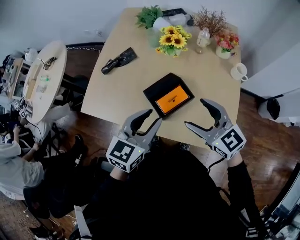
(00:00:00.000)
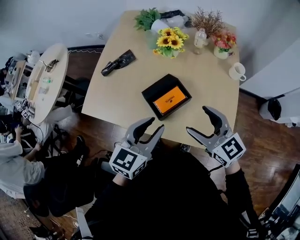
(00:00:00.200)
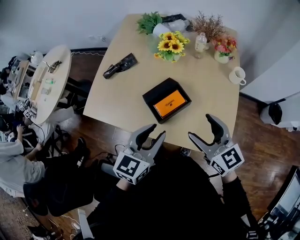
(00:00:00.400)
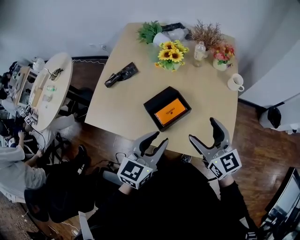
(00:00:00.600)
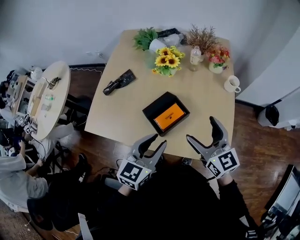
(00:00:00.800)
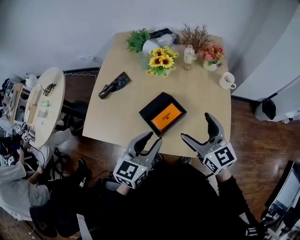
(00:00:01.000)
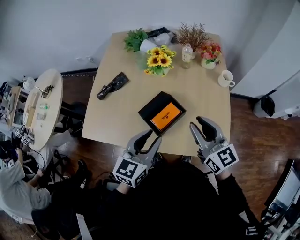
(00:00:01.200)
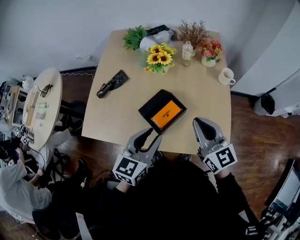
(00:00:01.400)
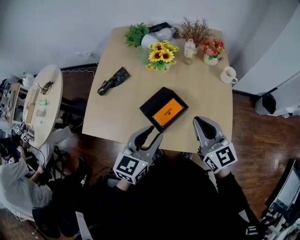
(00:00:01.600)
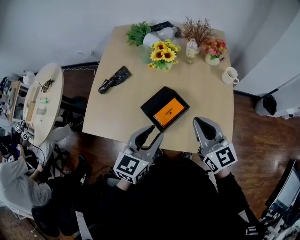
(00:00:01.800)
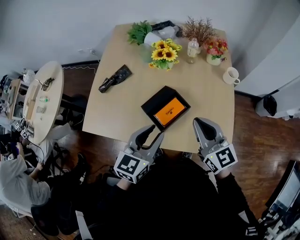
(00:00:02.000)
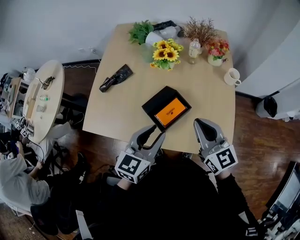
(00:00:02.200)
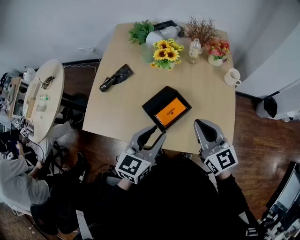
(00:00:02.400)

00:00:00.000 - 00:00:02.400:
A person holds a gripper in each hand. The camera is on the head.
00:00:00.000 - 00:00:01.200: The right gripper moves roughly 5 cm, swivels about 30 degrees, and closes its fingers.
00:00:01.200 - 00:00:02.400: There are only small adjustments of the grippers.

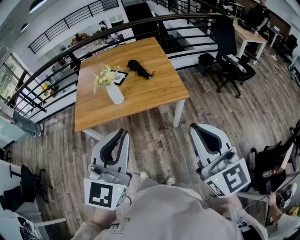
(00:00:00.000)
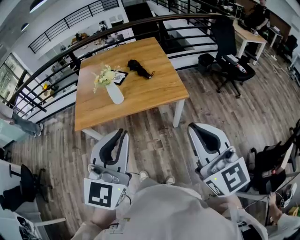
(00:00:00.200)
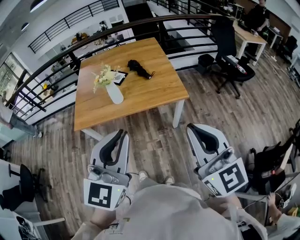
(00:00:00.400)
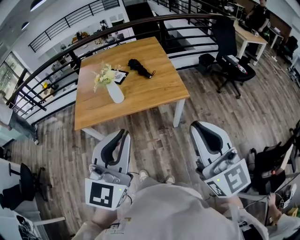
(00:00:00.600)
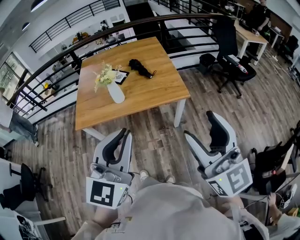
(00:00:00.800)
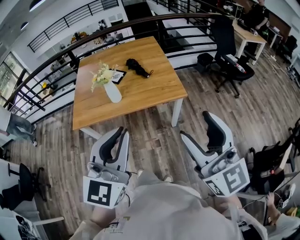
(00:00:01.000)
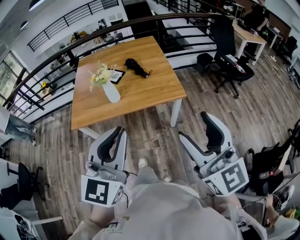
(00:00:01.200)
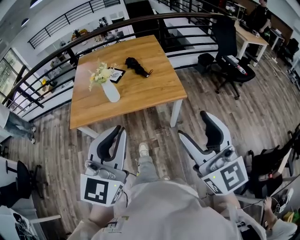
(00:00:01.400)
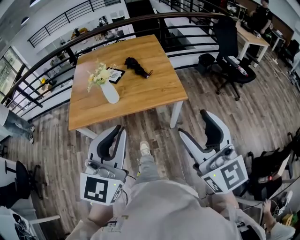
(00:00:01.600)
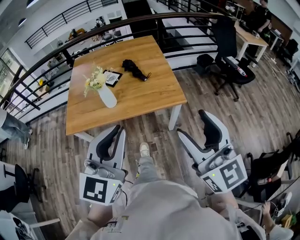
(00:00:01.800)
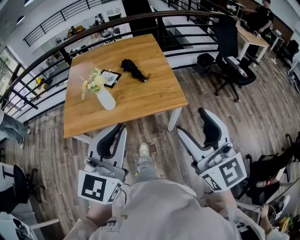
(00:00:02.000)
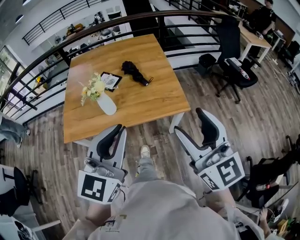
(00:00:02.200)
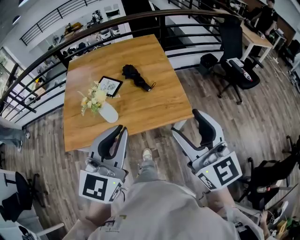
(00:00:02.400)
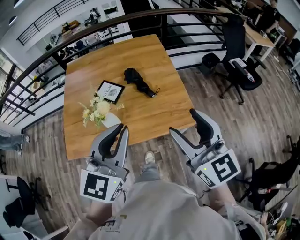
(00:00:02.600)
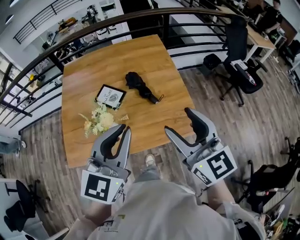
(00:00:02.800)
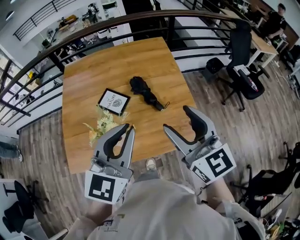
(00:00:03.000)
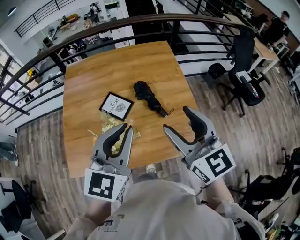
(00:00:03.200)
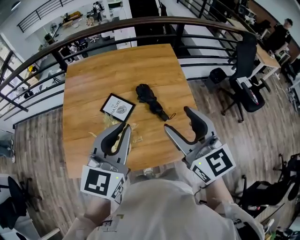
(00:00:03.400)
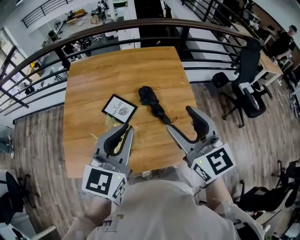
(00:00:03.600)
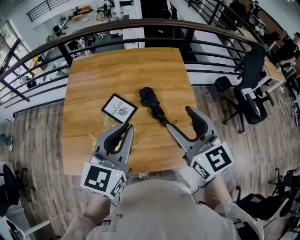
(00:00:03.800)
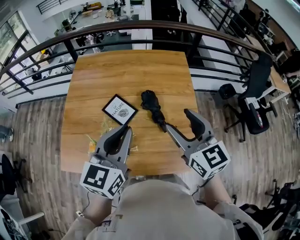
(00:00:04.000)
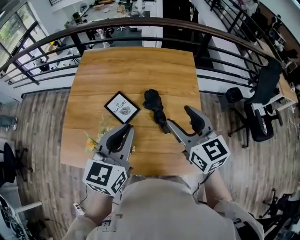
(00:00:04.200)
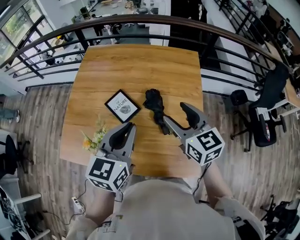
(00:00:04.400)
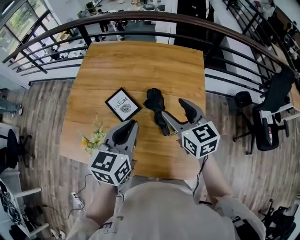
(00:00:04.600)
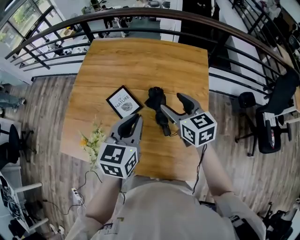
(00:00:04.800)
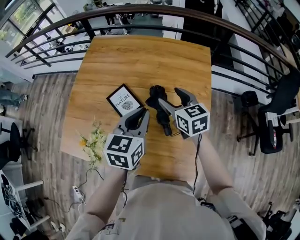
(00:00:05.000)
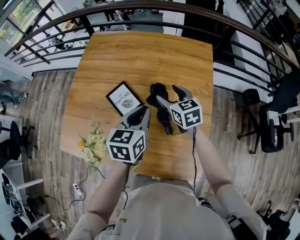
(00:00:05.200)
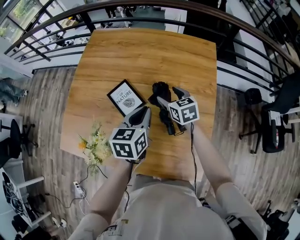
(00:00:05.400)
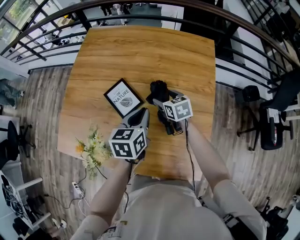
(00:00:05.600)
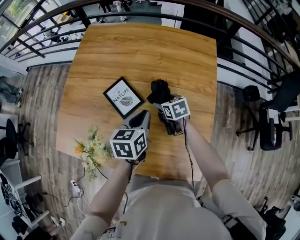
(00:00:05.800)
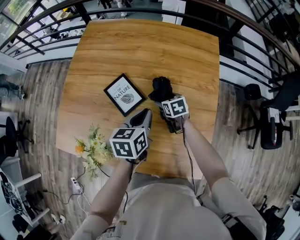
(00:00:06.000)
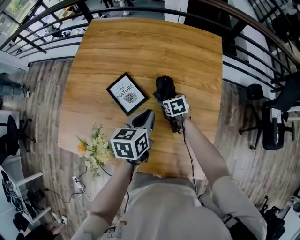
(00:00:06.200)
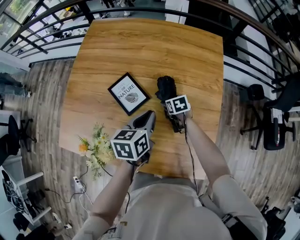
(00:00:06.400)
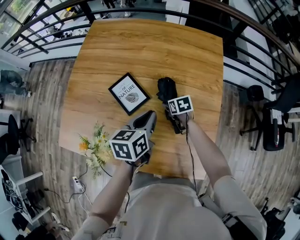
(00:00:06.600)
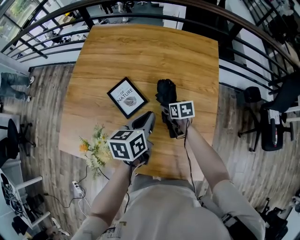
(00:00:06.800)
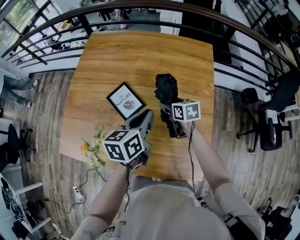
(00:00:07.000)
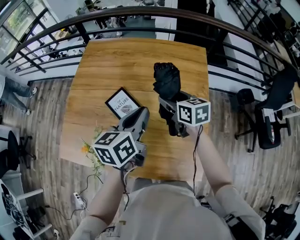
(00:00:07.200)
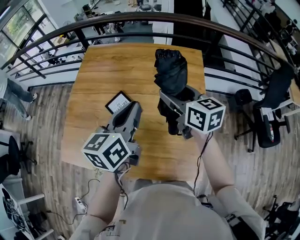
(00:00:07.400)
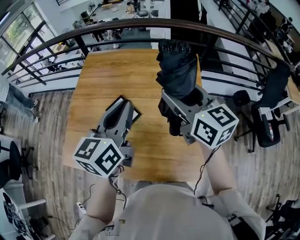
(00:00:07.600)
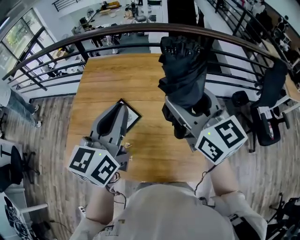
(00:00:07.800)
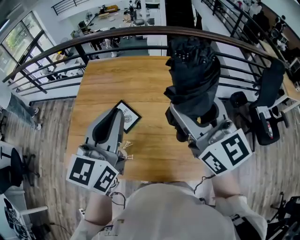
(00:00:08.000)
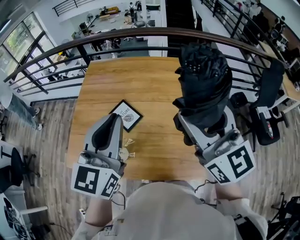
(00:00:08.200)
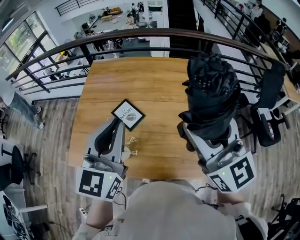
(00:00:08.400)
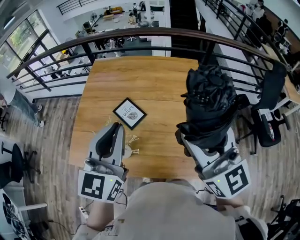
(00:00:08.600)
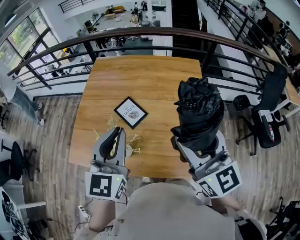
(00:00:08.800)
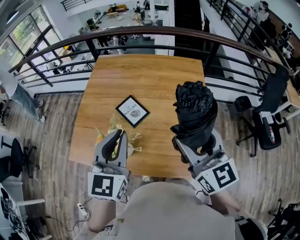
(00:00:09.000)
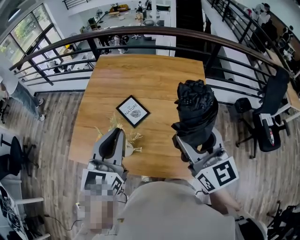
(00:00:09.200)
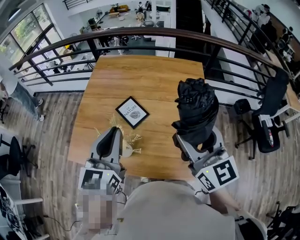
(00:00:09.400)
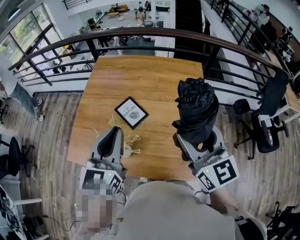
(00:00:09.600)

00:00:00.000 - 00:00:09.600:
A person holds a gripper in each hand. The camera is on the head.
00:00:00.000 - 00:00:01.600: The right gripper goes some 5 cm forward, and opens. Meanwhile the left gripper ends up some 5 cm from where it was.
00:00:01.600 - 00:00:03.200: The pair of grippers is taken forward, some 50 cm.
00:00:03.200 - 00:00:04.800: The right gripper travels forward and downward by approximately 30 cm, and swivels roughly 30 degrees, while the left gripper heads forward, downward and to the right, covering about 20 cm, and swivels about 30 degrees.
00:00:04.800 - 00:00:06.400: The left gripper travels downward by approximately 15 cm, and swivels roughly 30 degrees. Meanwhile the right gripper is displaced downward by about 35 cm, and tips its fingers downward by roughly 40 degrees.
00:00:06.400 - 00:00:08.000: The left gripper goes about 30 cm upward, and points its fingers approximately 30 degrees further upward. The right gripper heads upward, covering approximately 60 cm, and tilts its fingers approximately 70 degrees upward.
00:00:08.000 - 00:00:09.600: The left gripper travels to the left and downward by some 10 cm. The right gripper shifts about 10 cm downward and backward.

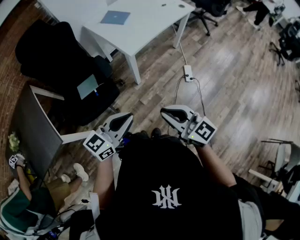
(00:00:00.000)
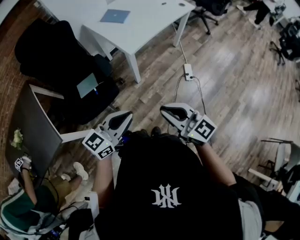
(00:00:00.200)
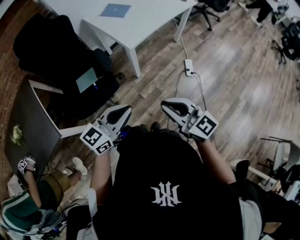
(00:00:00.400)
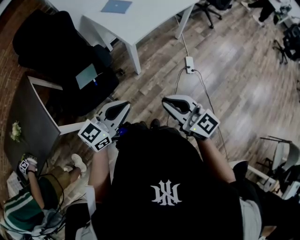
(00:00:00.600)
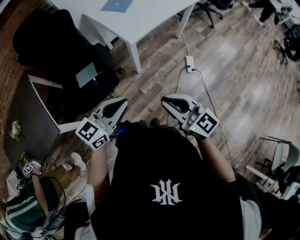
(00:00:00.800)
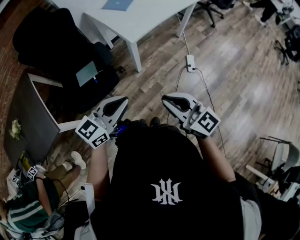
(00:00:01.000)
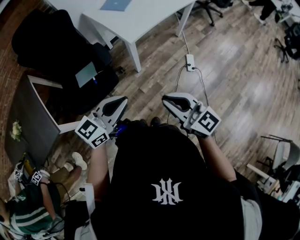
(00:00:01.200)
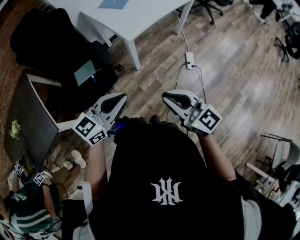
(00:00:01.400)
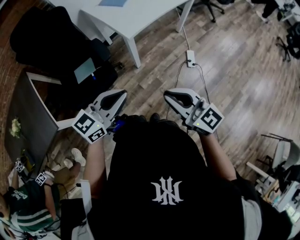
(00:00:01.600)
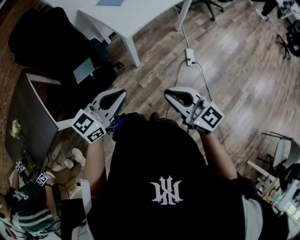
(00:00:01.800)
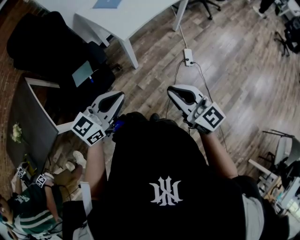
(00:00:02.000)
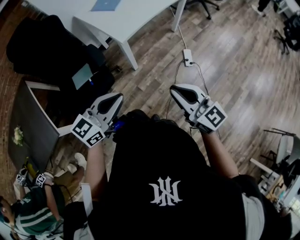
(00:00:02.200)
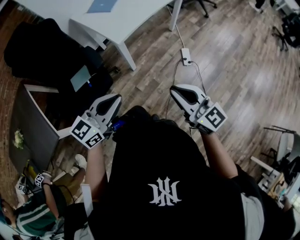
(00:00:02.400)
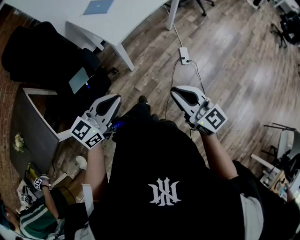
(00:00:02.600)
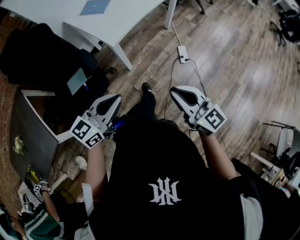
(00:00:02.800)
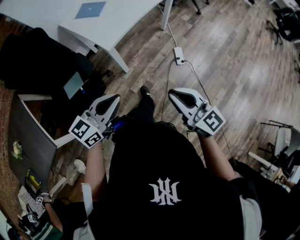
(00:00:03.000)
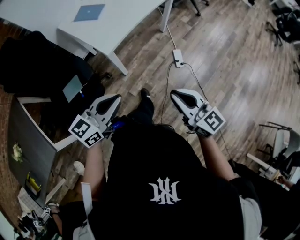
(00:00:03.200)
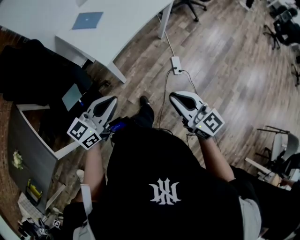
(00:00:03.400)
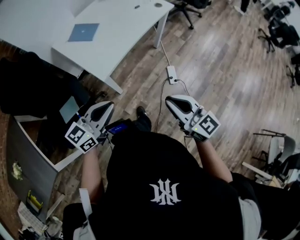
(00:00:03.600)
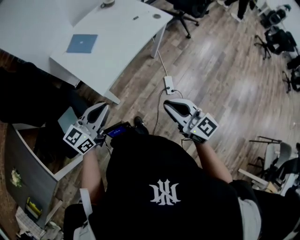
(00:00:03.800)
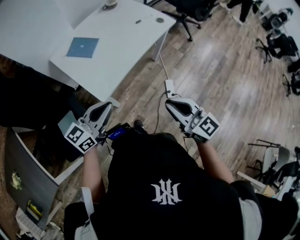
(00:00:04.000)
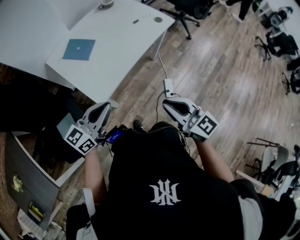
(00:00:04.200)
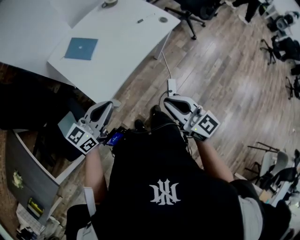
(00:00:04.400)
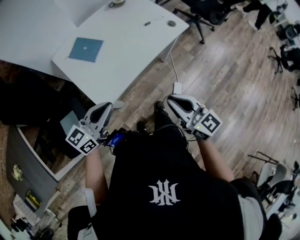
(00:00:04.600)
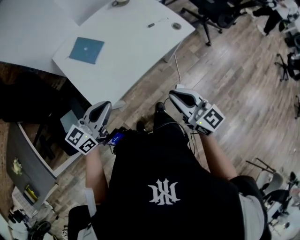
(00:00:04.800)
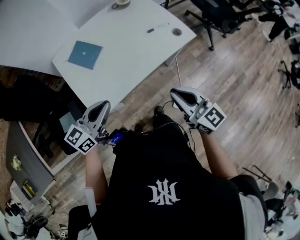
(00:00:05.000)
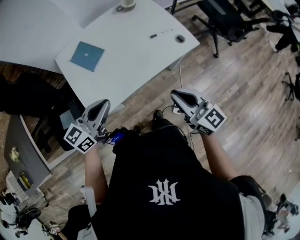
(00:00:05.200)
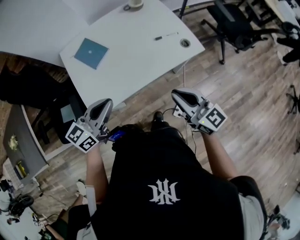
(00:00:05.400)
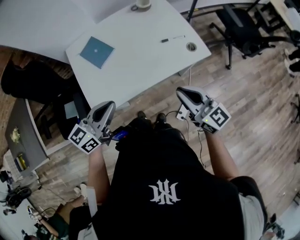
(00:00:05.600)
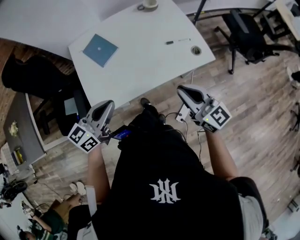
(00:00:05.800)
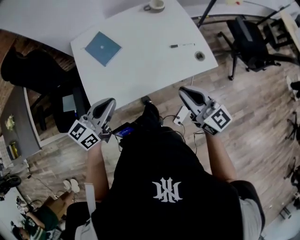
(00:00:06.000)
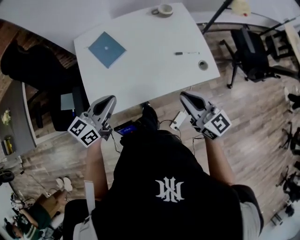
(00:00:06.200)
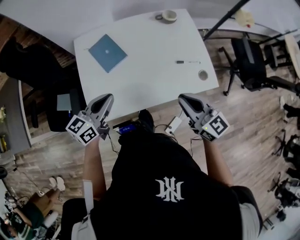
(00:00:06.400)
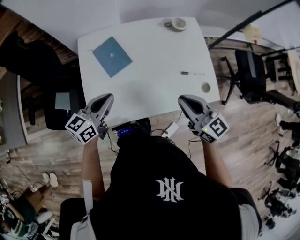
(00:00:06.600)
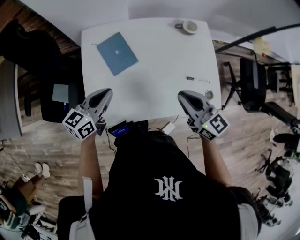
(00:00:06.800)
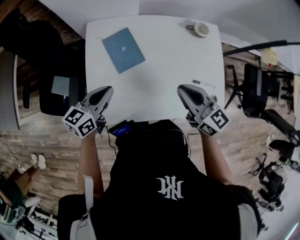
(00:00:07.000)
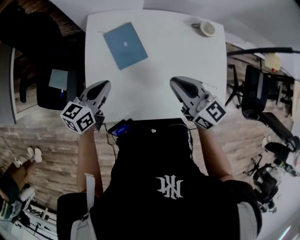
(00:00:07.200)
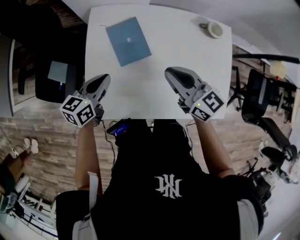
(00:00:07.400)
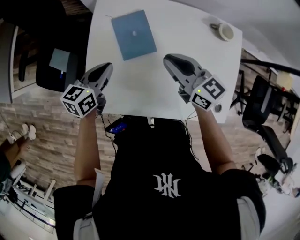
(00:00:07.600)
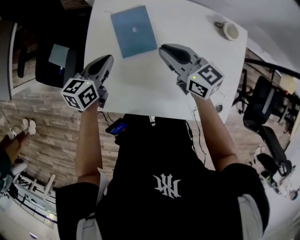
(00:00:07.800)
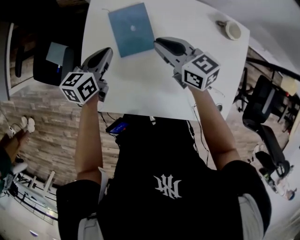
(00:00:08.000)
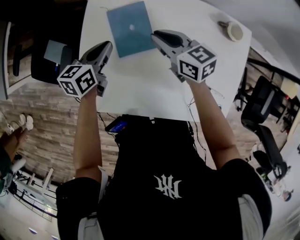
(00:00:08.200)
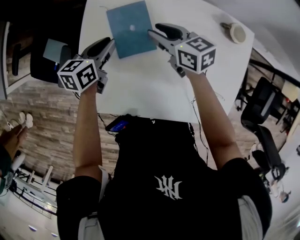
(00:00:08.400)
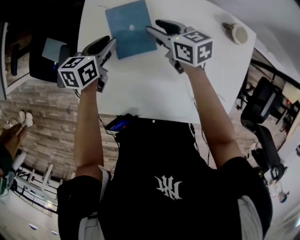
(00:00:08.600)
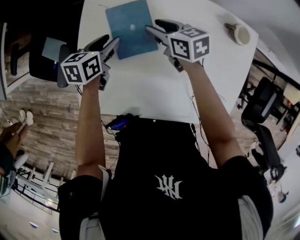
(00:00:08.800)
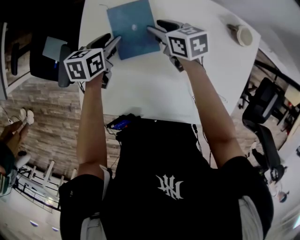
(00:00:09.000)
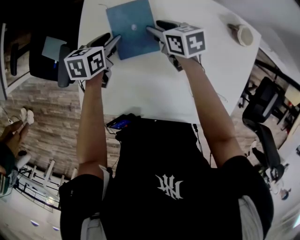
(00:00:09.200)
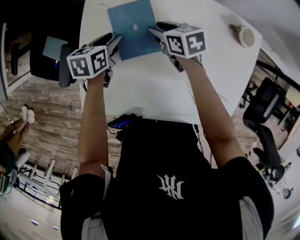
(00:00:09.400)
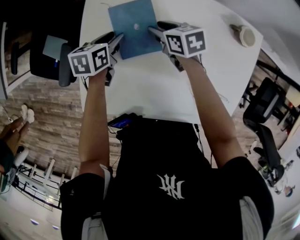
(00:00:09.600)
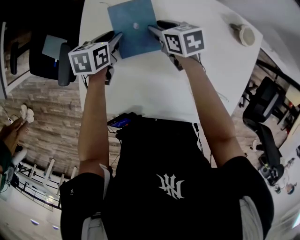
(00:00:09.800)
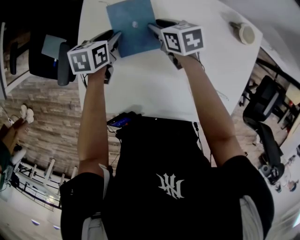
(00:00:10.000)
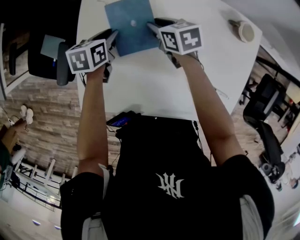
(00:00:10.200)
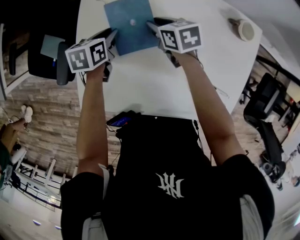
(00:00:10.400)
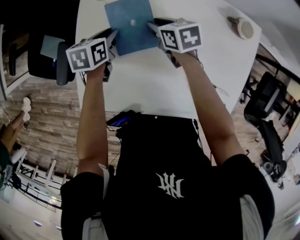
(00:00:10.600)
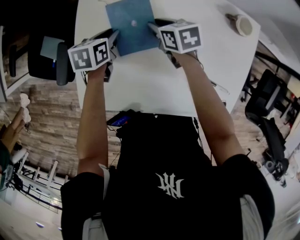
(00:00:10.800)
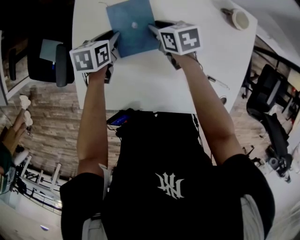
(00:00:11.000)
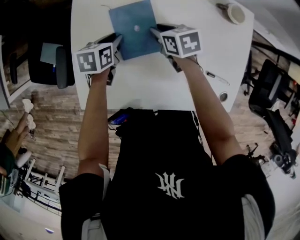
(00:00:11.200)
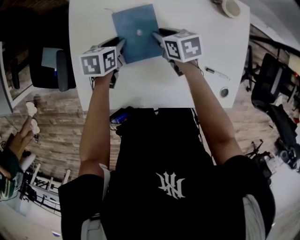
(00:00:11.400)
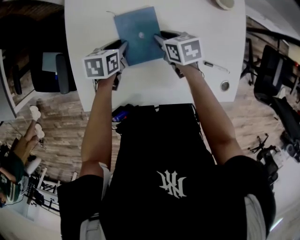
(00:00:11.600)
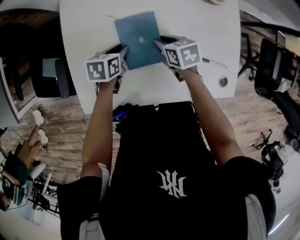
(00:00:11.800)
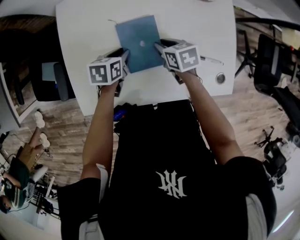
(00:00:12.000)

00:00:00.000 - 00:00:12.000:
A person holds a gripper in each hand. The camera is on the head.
00:00:00.000 - 00:00:01.600: The grippers move only a little.
00:00:01.600 - 00:00:03.000: The left gripper goes approximately 5 cm forward. The right gripper is displaced to the right and forward by roughly 10 cm.
00:00:03.000 - 00:00:04.400: The two grippers go approximately 30 cm forward.
00:00:04.400 - 00:00:06.000: The left gripper shifts by approximately 15 cm, and turns by approximately 30 degrees; the right gripper ends up about 30 cm from where it was, and changes its angle by approximately 20 degrees.
00:00:06.000 - 00:00:07.600: The right gripper moves approximately 35 cm, and turns by about 30 degrees. The left gripper moves approximately 25 cm, and rotates about 40 degrees.
00:00:07.600 - 00:00:09.000: Both grippers travel together downward and forward, roughly 20 cm. The right gripper turns by about 30 degrees, and opens its fingers. The left gripper opens up.
00:00:09.000 - 00:00:10.400: The left gripper closes.
00:00:10.400 - 00:00:12.000: The left gripper goes about 15 cm to the right and backward, and turns by approximately 20 degrees; the right gripper moves backward and to the right, roughly 20 cm.
